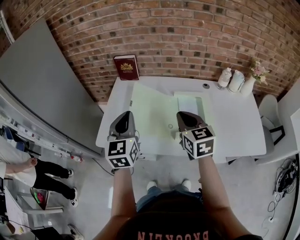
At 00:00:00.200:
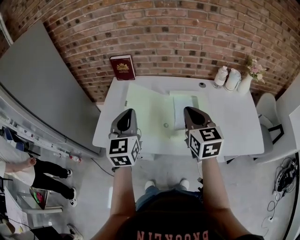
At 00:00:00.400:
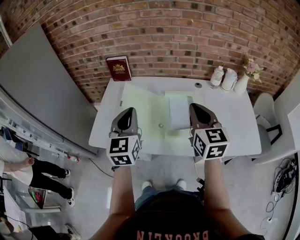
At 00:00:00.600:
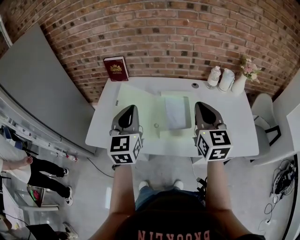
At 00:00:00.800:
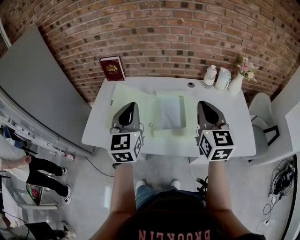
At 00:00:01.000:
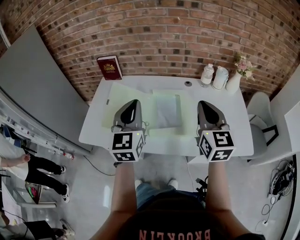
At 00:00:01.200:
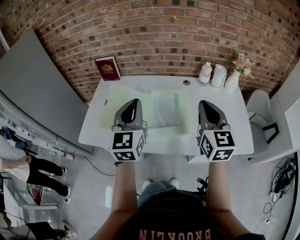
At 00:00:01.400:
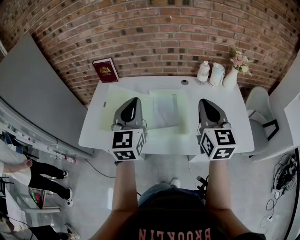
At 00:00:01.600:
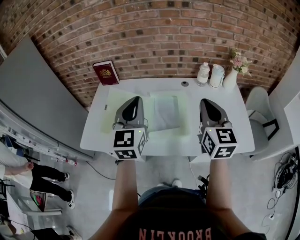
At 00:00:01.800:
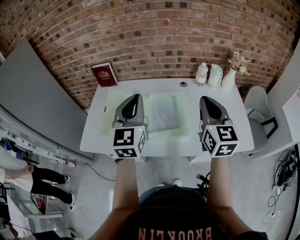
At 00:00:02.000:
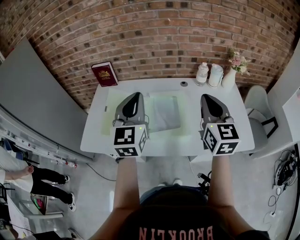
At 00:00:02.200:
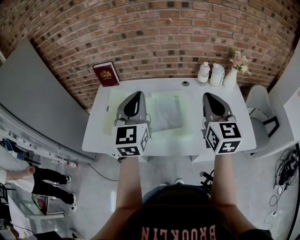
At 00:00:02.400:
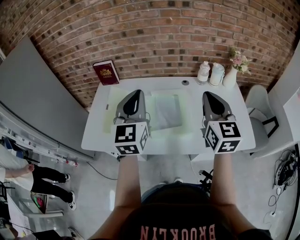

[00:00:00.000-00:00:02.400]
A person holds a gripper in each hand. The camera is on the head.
00:00:00.000 to 00:00:01.200: Both grippers move to the right, about 20 cm. The right gripper changes its angle by approximately 20 degrees.
00:00:01.200 to 00:00:02.400: The grippers make only small movements.

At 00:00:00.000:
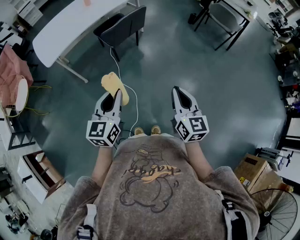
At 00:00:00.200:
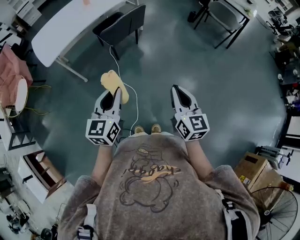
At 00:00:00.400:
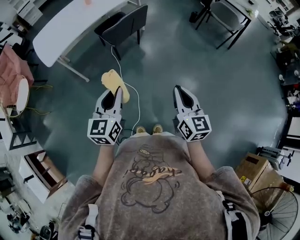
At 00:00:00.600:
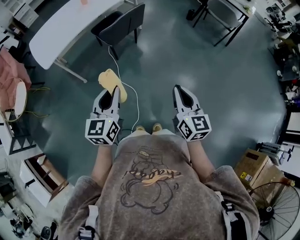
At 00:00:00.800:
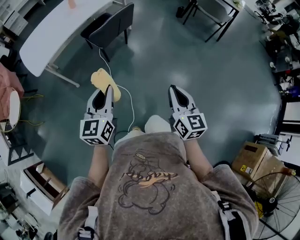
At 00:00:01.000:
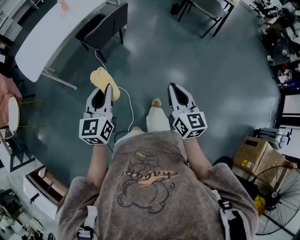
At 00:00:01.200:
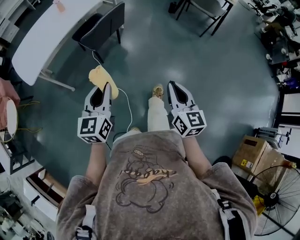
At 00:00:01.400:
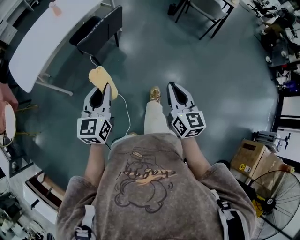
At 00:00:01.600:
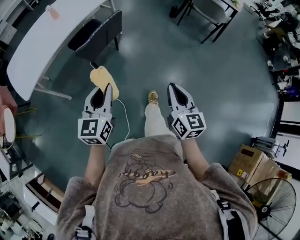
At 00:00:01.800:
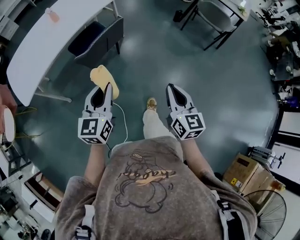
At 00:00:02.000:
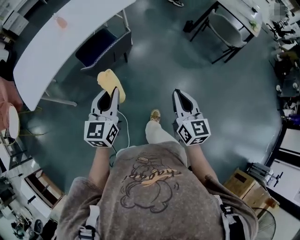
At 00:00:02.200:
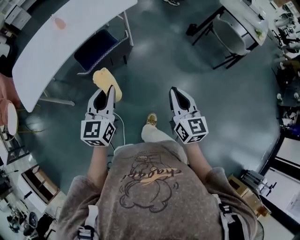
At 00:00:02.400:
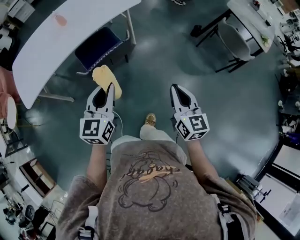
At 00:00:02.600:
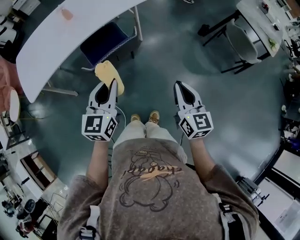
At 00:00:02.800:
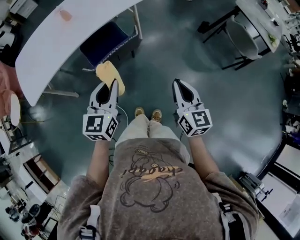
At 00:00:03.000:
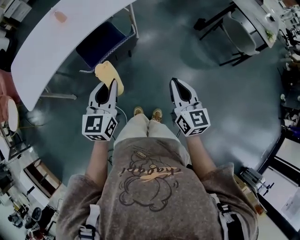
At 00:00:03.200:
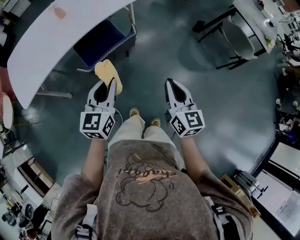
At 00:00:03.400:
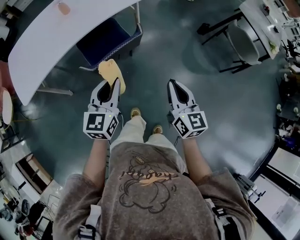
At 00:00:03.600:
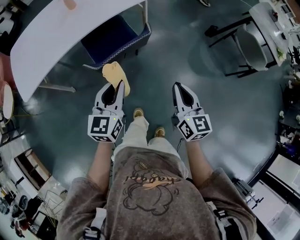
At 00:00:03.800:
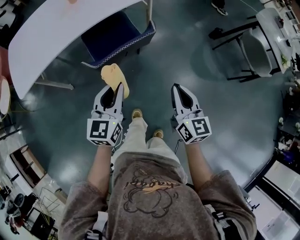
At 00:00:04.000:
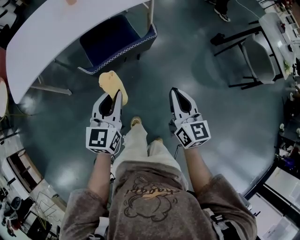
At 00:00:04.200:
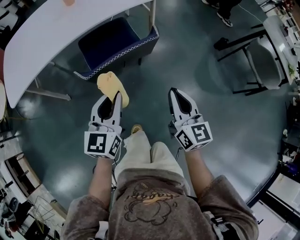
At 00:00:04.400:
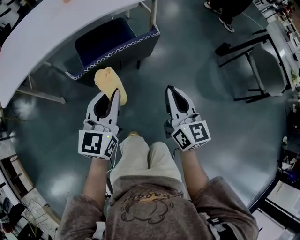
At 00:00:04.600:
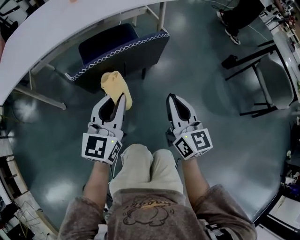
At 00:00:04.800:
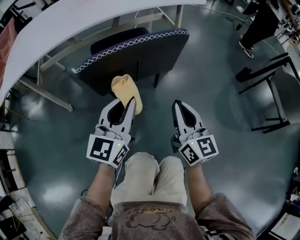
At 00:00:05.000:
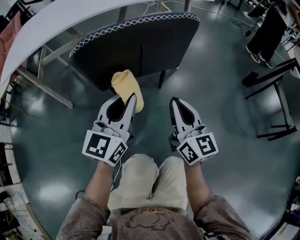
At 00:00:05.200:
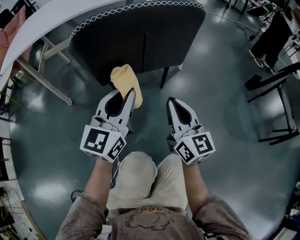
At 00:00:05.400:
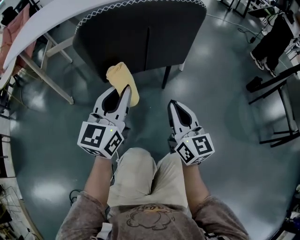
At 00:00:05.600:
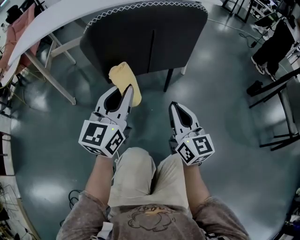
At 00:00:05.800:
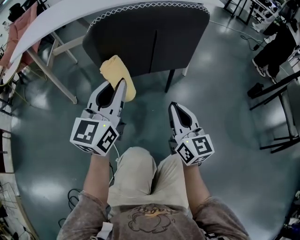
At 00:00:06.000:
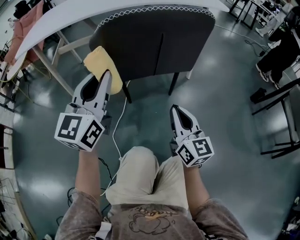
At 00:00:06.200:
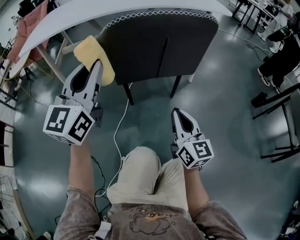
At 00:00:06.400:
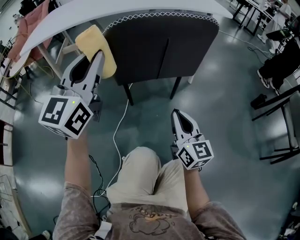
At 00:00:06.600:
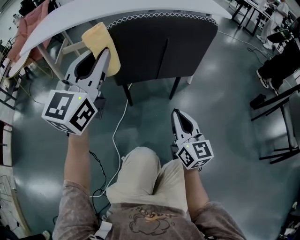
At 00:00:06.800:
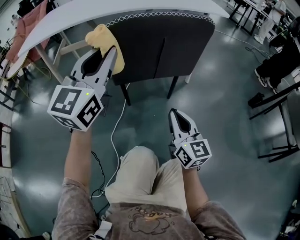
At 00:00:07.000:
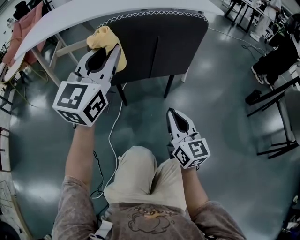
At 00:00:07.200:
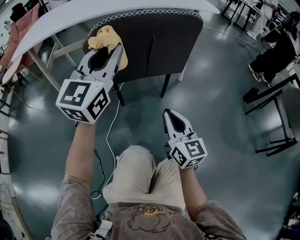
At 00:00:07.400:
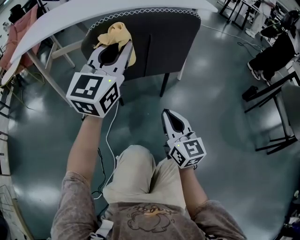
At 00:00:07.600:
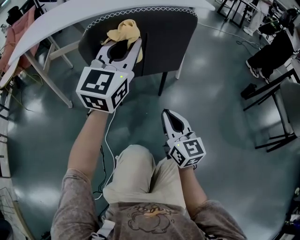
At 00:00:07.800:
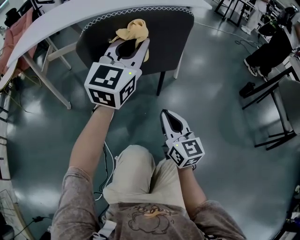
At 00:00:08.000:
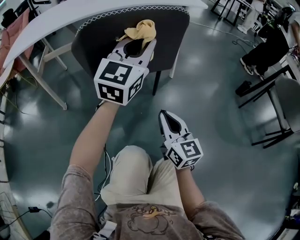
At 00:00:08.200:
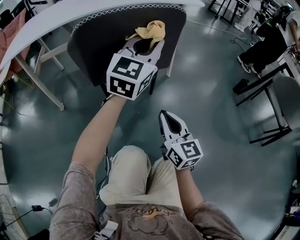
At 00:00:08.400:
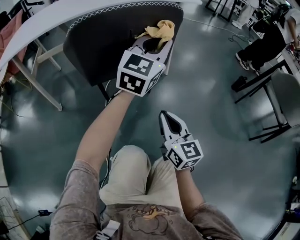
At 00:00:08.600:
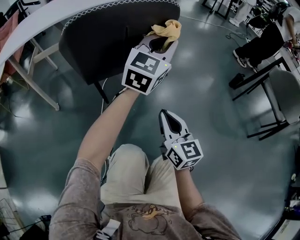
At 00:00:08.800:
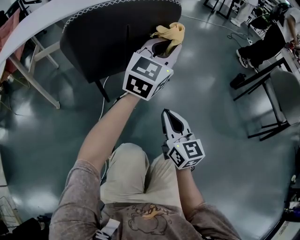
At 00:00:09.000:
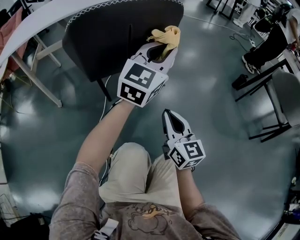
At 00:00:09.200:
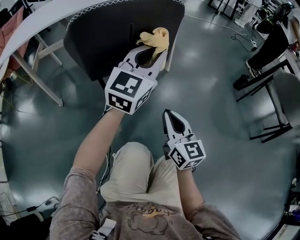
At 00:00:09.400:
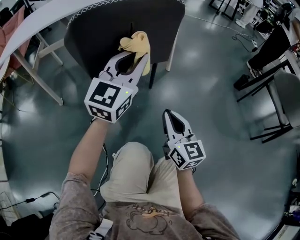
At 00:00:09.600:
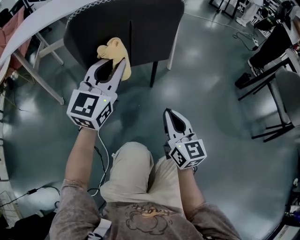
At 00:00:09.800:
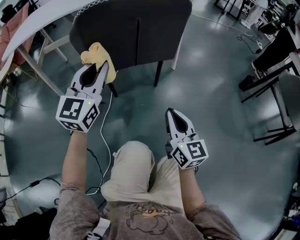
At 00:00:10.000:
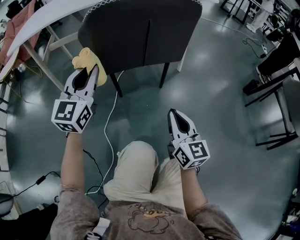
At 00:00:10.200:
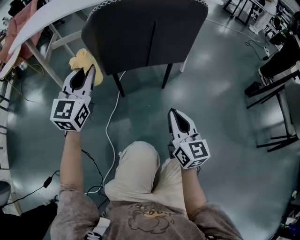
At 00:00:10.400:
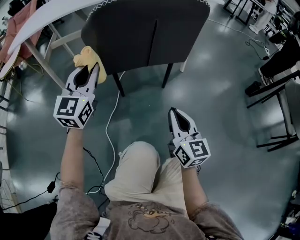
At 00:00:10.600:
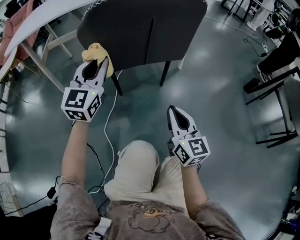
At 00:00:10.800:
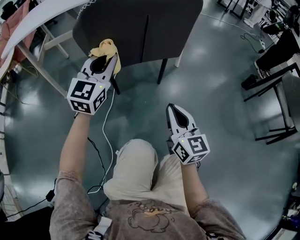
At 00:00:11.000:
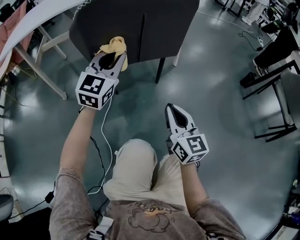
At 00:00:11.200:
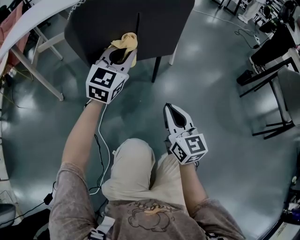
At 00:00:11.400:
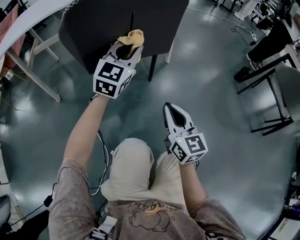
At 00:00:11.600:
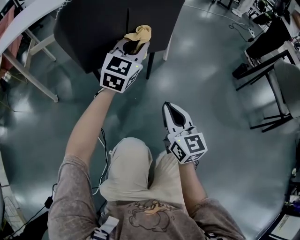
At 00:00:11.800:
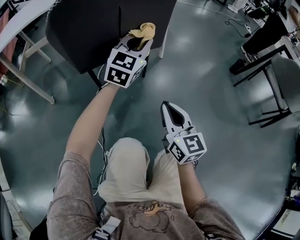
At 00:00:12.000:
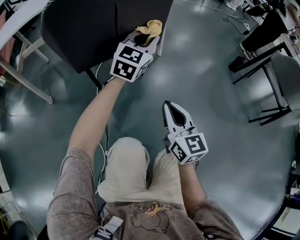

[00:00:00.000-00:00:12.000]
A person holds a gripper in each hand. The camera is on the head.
00:00:00.000 to 00:00:01.600: The two grippers go approximately 20 cm forward.
00:00:01.600 to 00:00:03.000: The two grippers go roughly 30 cm forward.
00:00:03.000 to 00:00:04.400: The left gripper shifts roughly 25 cm downward. The right gripper travels downward and forward by about 25 cm.
00:00:04.400 to 00:00:06.000: The right gripper goes about 25 cm downward; the left gripper heads downward and to the left, covering about 15 cm, and turns by roughly 20 degrees.
00:00:06.000 to 00:00:07.600: The left gripper goes about 15 cm to the right, forward and upward.
00:00:07.600 to 00:00:09.000: The right gripper moves to the right, roughly 5 cm. The left gripper shifts about 15 cm to the right and downward.
00:00:09.000 to 00:00:10.400: The left gripper shifts roughly 30 cm to the left, and swivels some 30 degrees.
00:00:10.400 to 00:00:12.000: The left gripper goes roughly 30 cm to the right and forward, and turns by roughly 30 degrees; the right gripper ends up approximately 5 cm from where it was.

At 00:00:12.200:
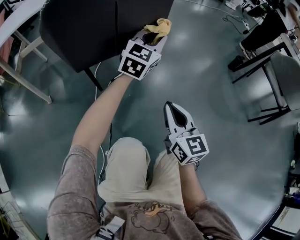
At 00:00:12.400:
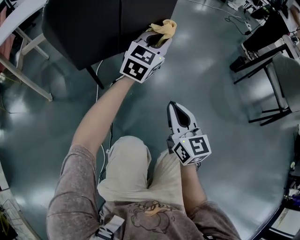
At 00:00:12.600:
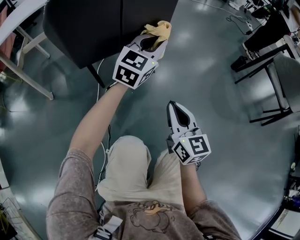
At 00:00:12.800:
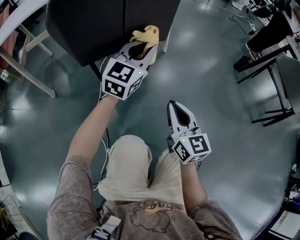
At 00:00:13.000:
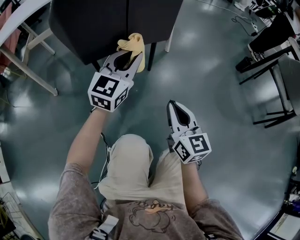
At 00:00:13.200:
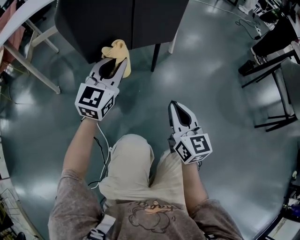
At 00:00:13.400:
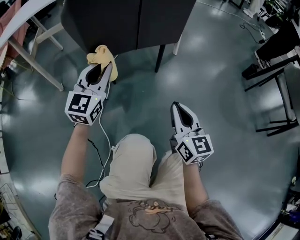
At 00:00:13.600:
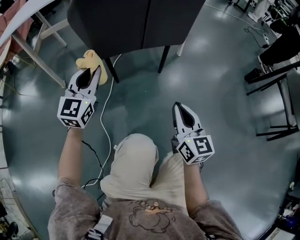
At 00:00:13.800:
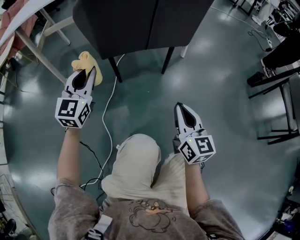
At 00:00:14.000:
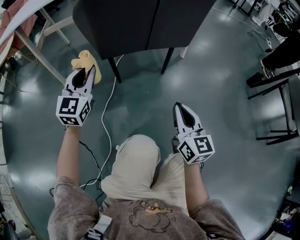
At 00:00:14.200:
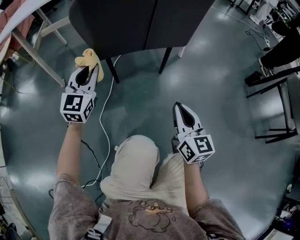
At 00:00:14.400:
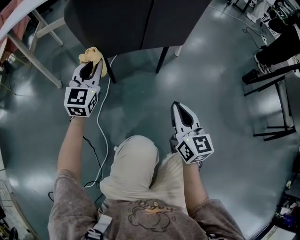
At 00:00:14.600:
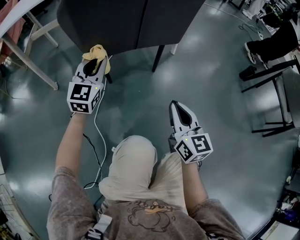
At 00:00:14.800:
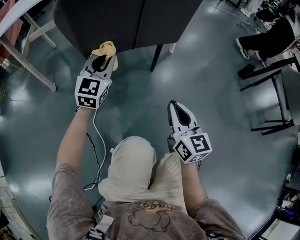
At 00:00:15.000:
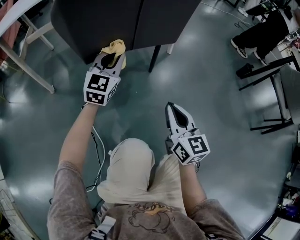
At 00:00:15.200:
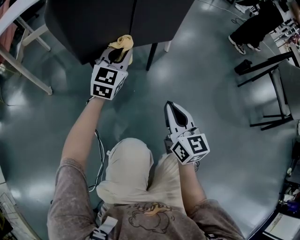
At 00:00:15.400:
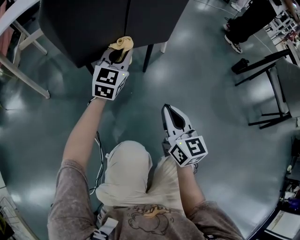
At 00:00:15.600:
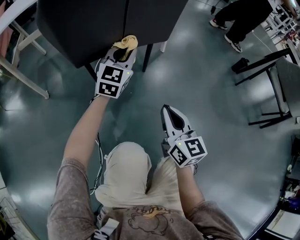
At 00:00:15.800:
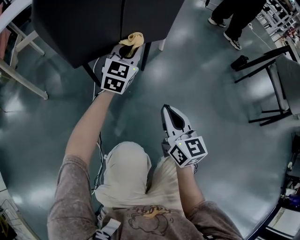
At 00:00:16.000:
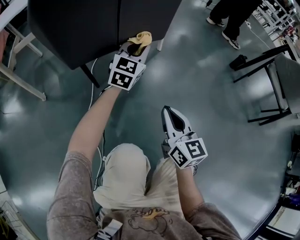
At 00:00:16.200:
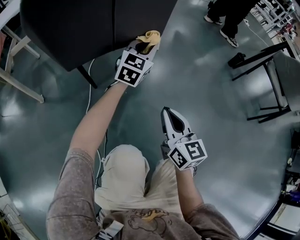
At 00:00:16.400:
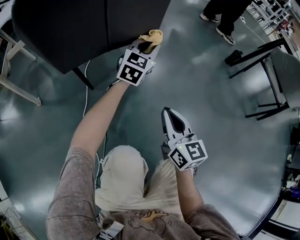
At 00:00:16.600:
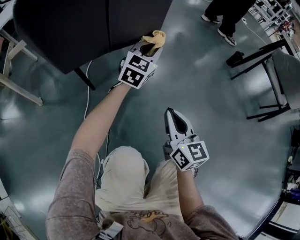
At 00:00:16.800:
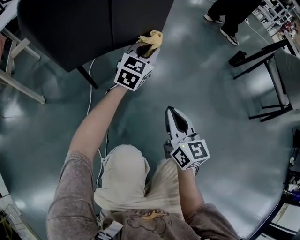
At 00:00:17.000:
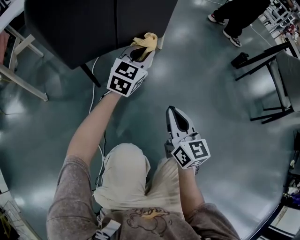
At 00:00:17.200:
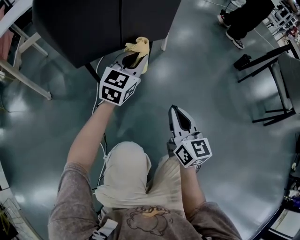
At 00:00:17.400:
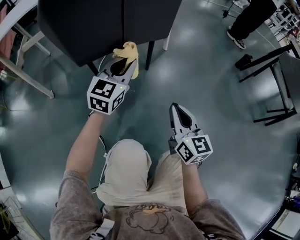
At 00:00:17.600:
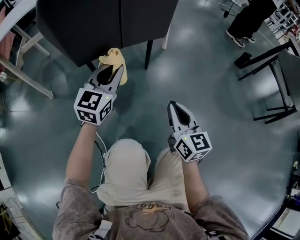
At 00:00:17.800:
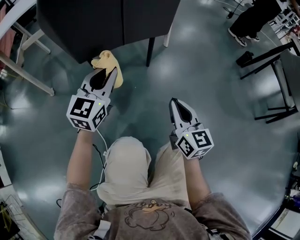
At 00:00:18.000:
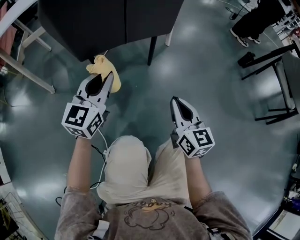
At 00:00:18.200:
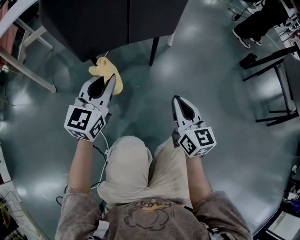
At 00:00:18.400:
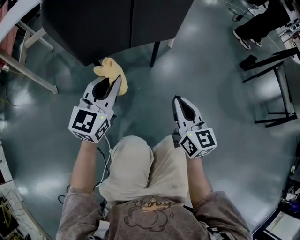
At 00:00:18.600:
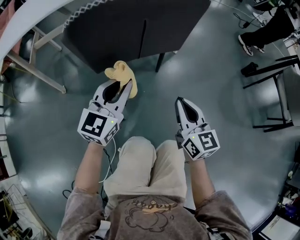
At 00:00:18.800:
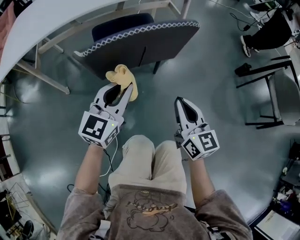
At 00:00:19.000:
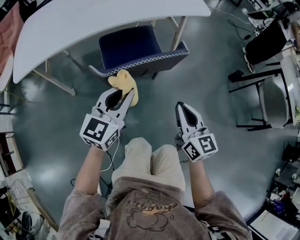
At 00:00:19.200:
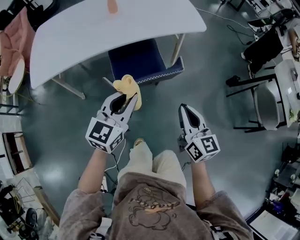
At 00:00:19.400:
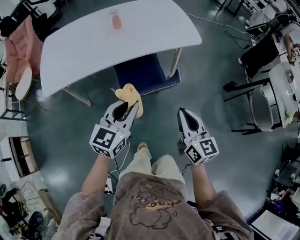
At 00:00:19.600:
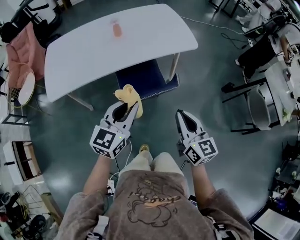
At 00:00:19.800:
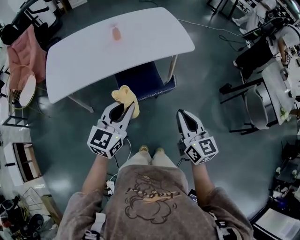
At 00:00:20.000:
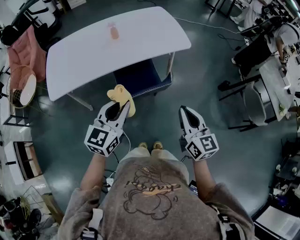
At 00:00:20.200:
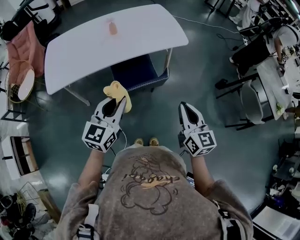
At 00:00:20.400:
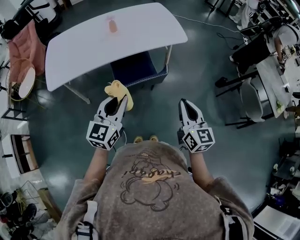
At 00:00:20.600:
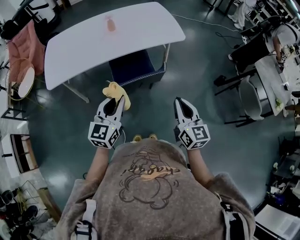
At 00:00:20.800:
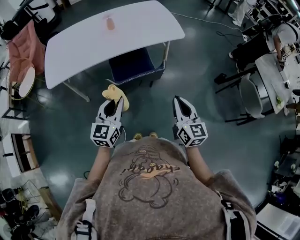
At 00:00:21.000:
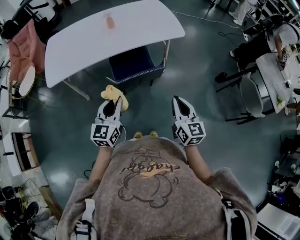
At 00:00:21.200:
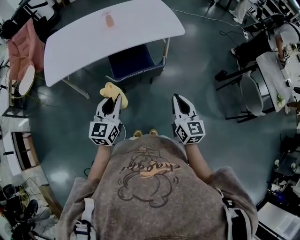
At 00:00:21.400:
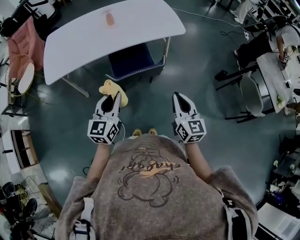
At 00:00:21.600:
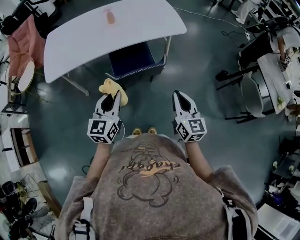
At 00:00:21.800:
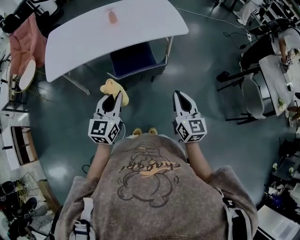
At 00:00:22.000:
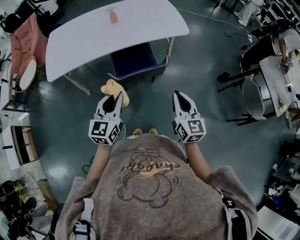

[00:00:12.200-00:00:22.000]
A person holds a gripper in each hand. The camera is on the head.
00:00:12.200 to 00:00:13.600: The left gripper moves to the left and backward, approximately 30 cm, and swivels about 20 degrees.
00:00:13.600 to 00:00:15.000: The left gripper travels to the right and forward by about 15 cm.
00:00:15.000 to 00:00:16.400: The left gripper heads to the right, covering roughly 20 cm.
00:00:16.400 to 00:00:17.800: The left gripper is displaced backward and to the left by approximately 25 cm.
00:00:17.800 to 00:00:19.200: Both grippers move upward, some 50 cm.
00:00:19.200 to 00:00:20.600: Both grippers travel together upward and backward, some 20 cm.
00:00:20.600 to 00:00:22.000: The grippers stay close to where they were, moving slightly.
